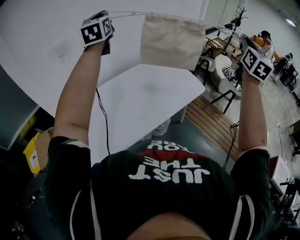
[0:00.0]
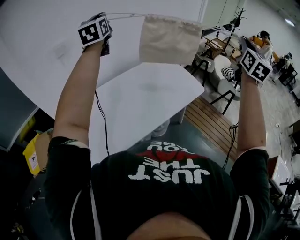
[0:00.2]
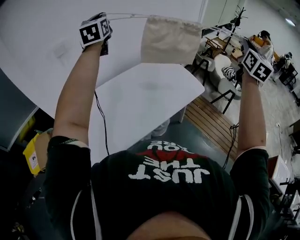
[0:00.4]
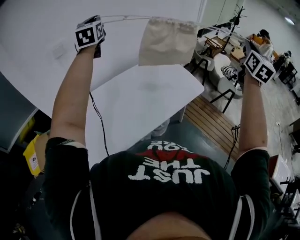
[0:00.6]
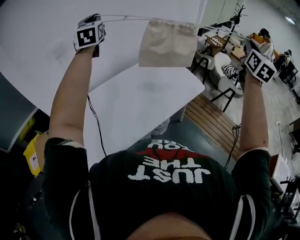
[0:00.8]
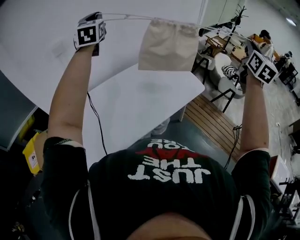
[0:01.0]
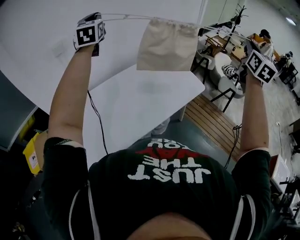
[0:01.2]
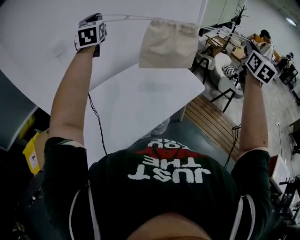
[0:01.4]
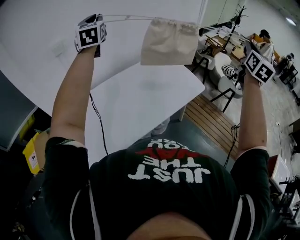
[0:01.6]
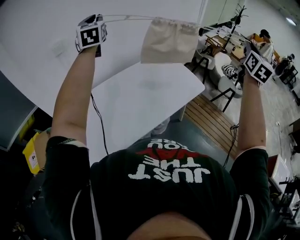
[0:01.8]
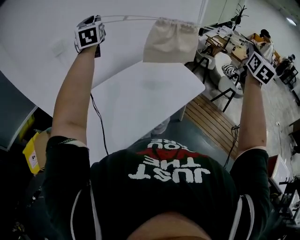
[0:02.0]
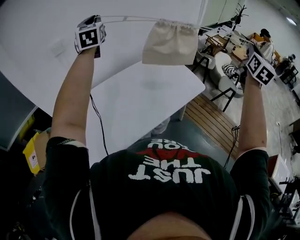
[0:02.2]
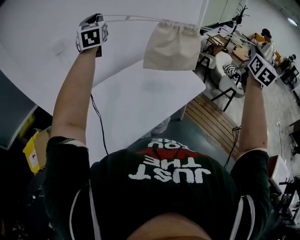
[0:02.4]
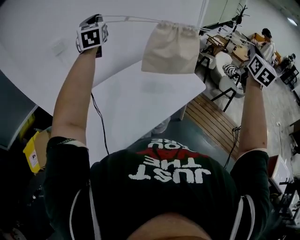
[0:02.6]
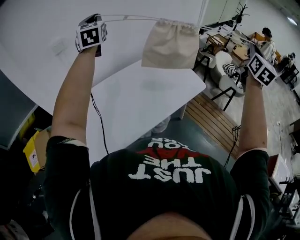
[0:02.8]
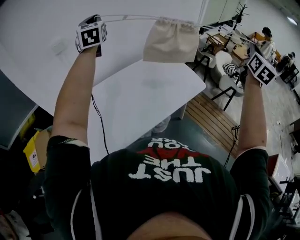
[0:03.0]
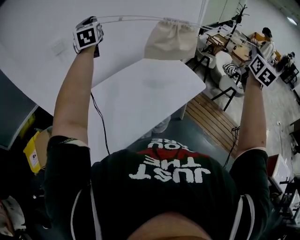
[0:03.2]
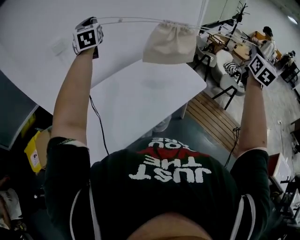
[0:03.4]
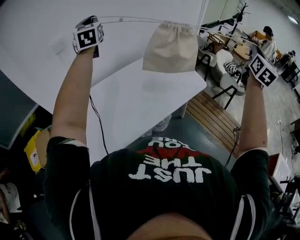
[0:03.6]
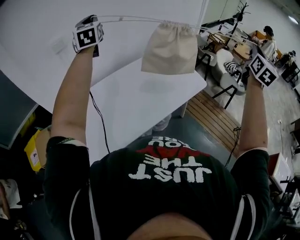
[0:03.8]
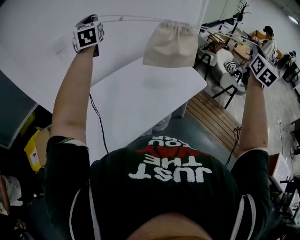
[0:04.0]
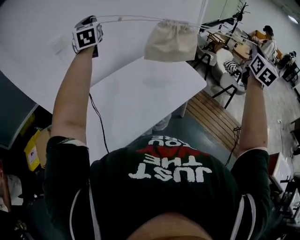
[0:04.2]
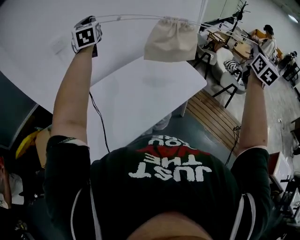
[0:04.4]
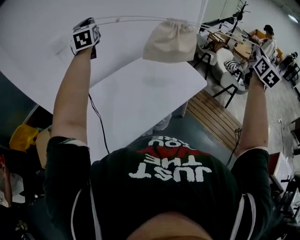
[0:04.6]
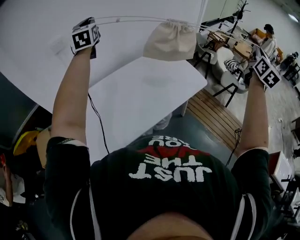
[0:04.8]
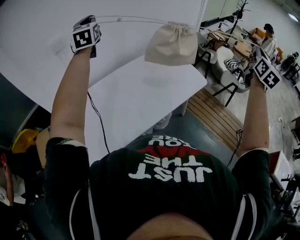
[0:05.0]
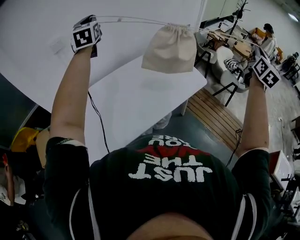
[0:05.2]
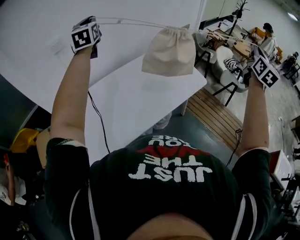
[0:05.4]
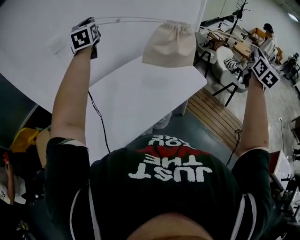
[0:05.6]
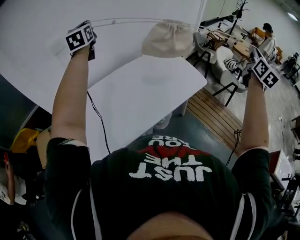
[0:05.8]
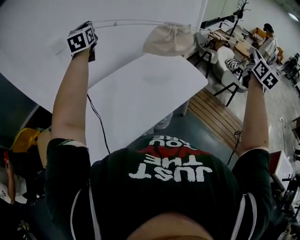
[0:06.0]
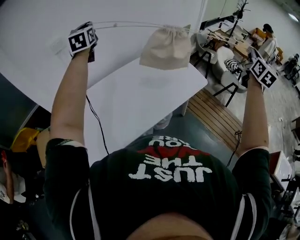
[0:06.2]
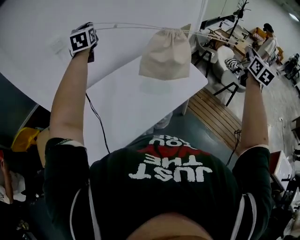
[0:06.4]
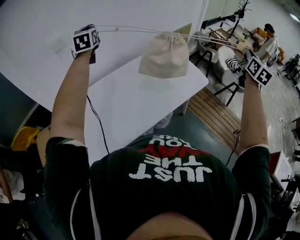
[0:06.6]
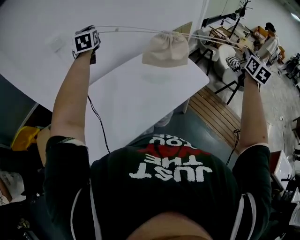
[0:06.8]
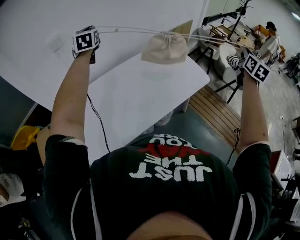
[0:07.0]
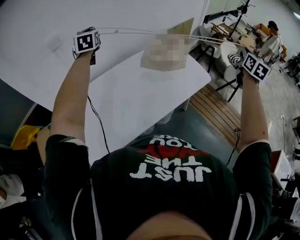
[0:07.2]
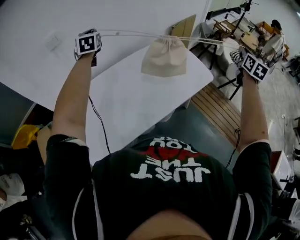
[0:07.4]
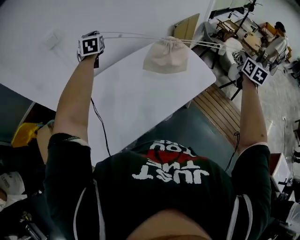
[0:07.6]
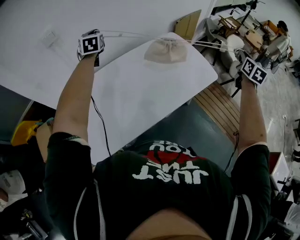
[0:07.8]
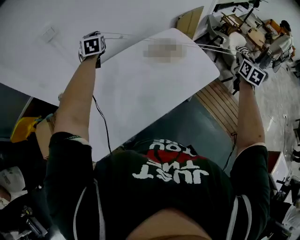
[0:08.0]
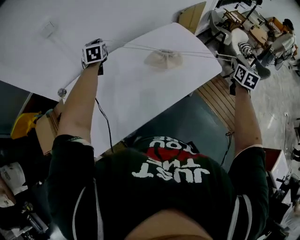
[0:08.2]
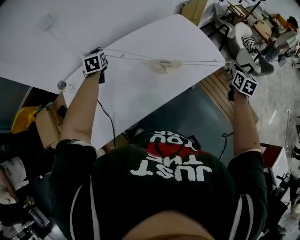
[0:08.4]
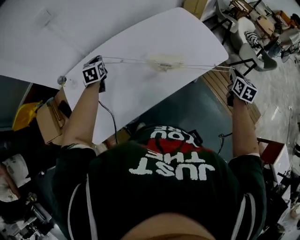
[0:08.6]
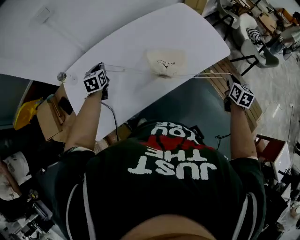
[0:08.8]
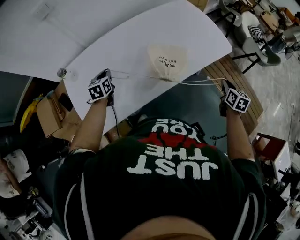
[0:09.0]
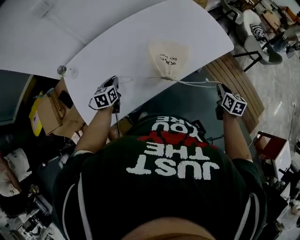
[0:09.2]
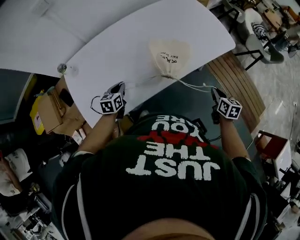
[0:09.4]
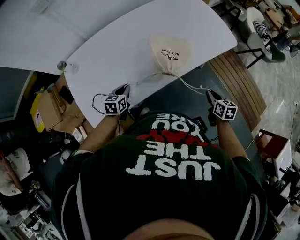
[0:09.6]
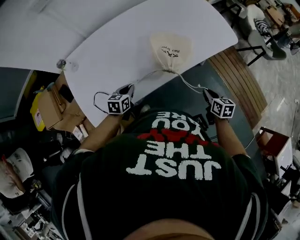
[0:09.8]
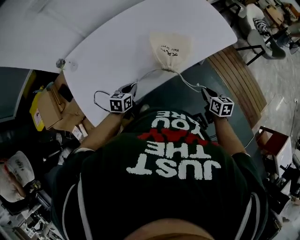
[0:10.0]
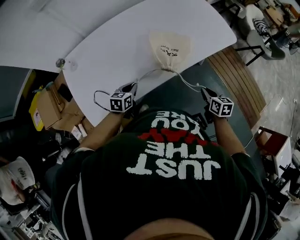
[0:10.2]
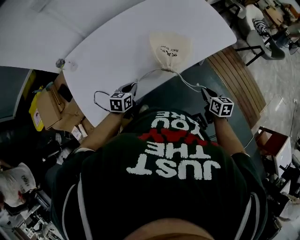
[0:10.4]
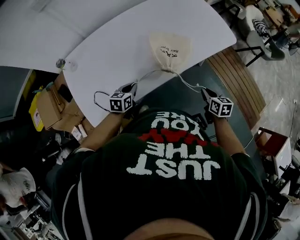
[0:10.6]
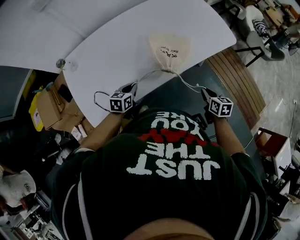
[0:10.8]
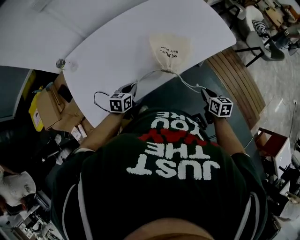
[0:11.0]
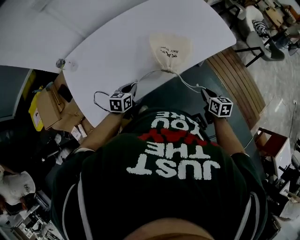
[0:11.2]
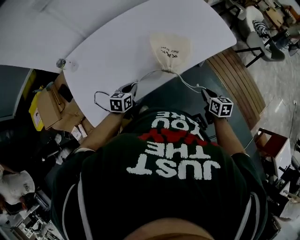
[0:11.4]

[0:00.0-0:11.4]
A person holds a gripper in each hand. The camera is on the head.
0.0 to 1.4 s: The grippers make only small movements.
1.4 to 4.2 s: There are only small adjustments of the grippers.
4.2 to 5.6 s: The grippers move only a little.
5.6 to 7.2 s: The left gripper heads downward, covering approximately 10 cm. The right gripper travels downward and forward by roughly 15 cm.
7.2 to 8.6 s: Both grippers travel together downward, approximately 30 cm. The right gripper changes its angle by some 30 degrees. Meanwhile the left gripper turns by about 30 degrees.
8.6 to 10.0 s: The left gripper moves backward, downward and to the right, approximately 30 cm, and changes its angle by roughly 30 degrees. The right gripper heads downward, backward and to the left, covering about 30 cm, and swivels roughly 30 degrees.
10.0 to 11.4 s: Both grippers stay put.

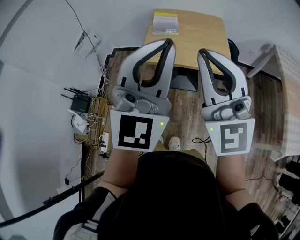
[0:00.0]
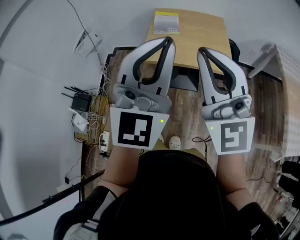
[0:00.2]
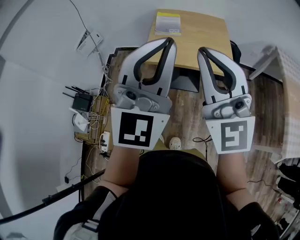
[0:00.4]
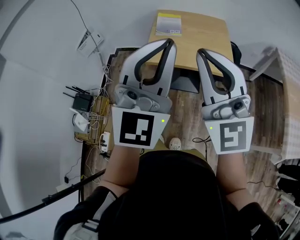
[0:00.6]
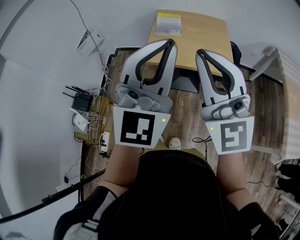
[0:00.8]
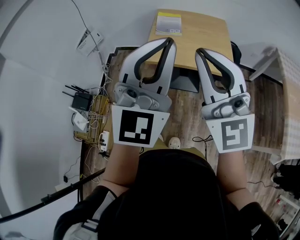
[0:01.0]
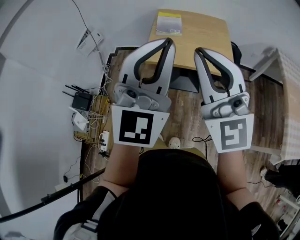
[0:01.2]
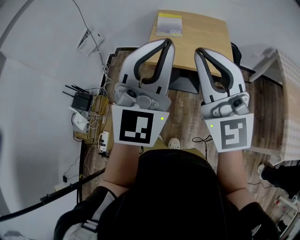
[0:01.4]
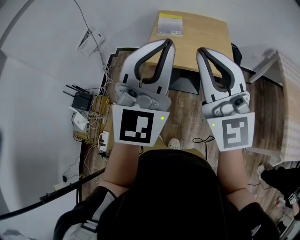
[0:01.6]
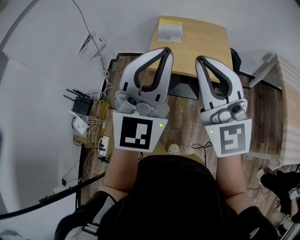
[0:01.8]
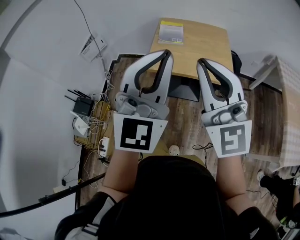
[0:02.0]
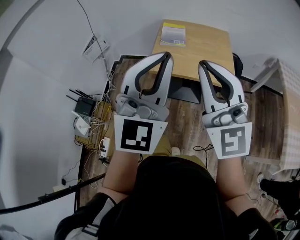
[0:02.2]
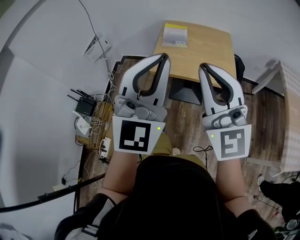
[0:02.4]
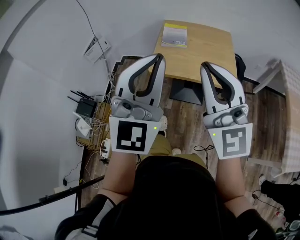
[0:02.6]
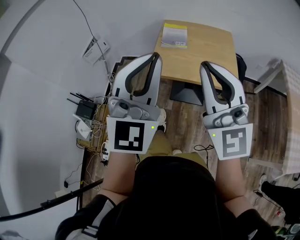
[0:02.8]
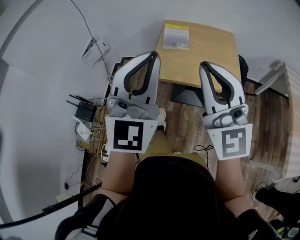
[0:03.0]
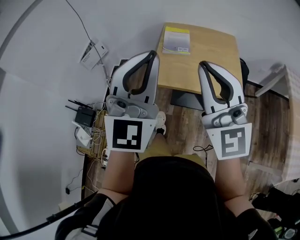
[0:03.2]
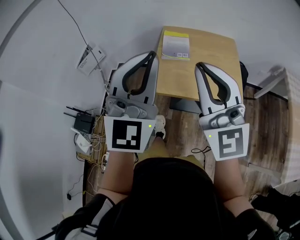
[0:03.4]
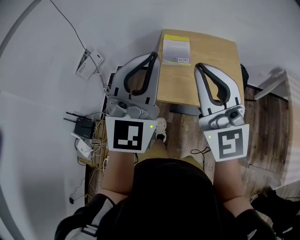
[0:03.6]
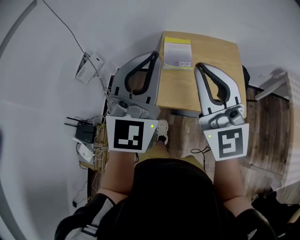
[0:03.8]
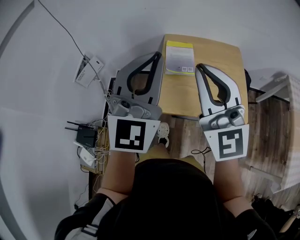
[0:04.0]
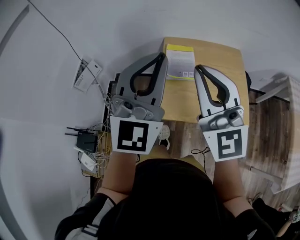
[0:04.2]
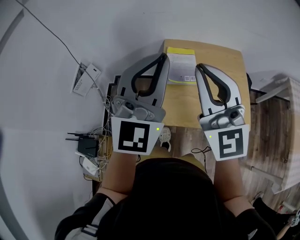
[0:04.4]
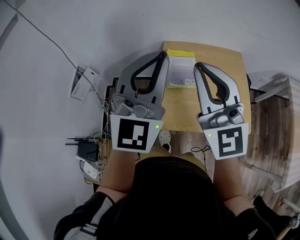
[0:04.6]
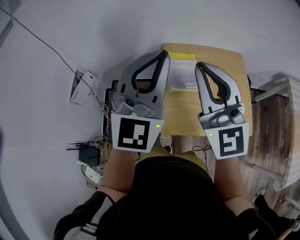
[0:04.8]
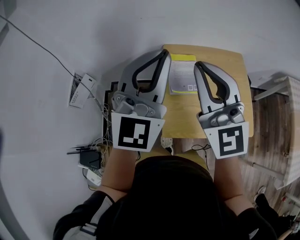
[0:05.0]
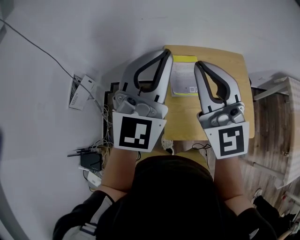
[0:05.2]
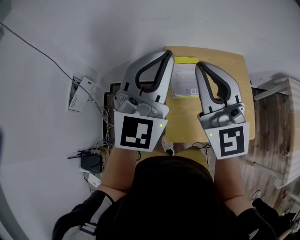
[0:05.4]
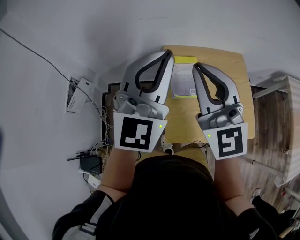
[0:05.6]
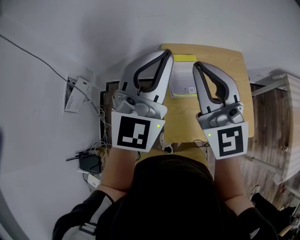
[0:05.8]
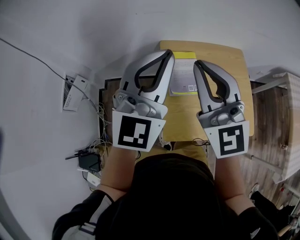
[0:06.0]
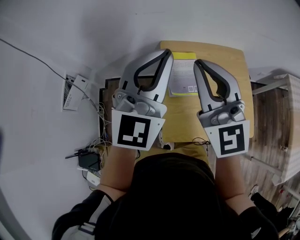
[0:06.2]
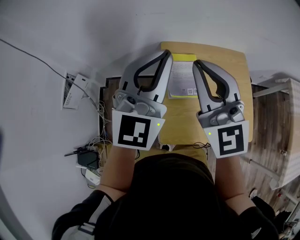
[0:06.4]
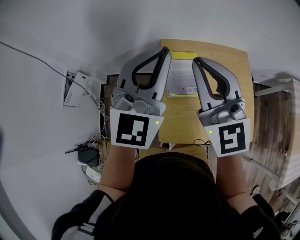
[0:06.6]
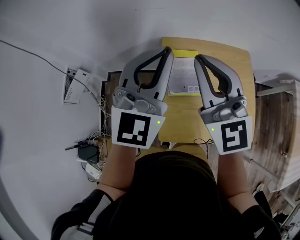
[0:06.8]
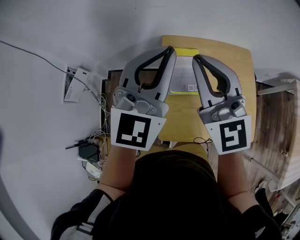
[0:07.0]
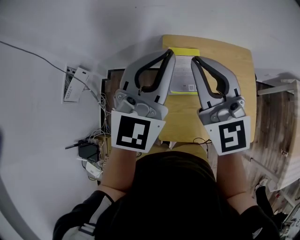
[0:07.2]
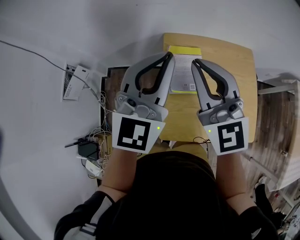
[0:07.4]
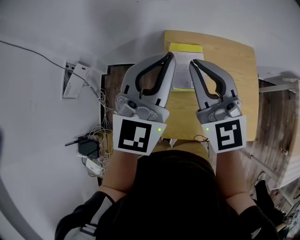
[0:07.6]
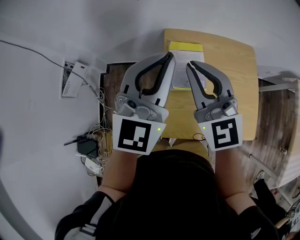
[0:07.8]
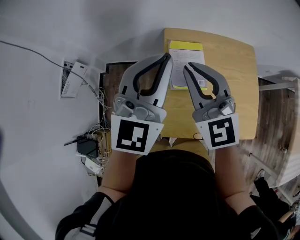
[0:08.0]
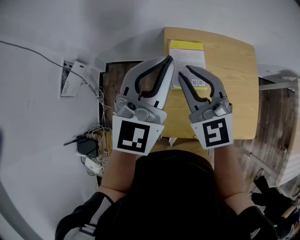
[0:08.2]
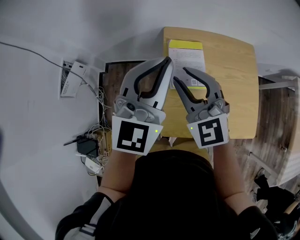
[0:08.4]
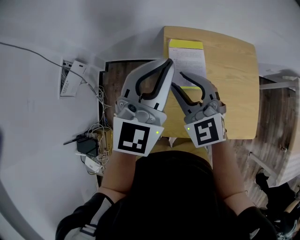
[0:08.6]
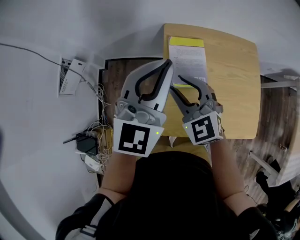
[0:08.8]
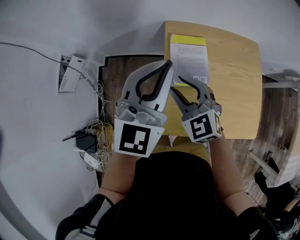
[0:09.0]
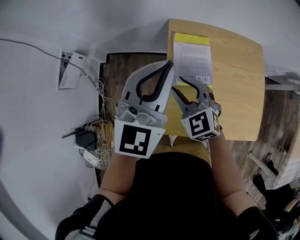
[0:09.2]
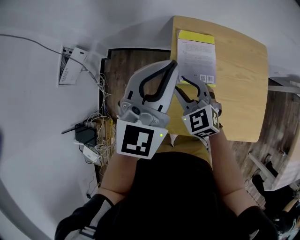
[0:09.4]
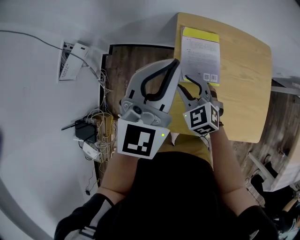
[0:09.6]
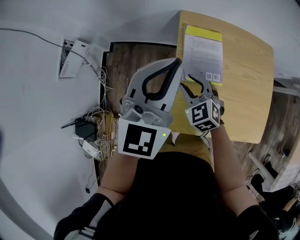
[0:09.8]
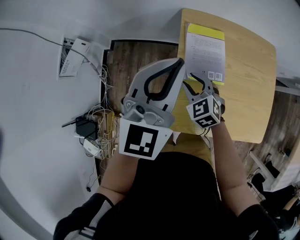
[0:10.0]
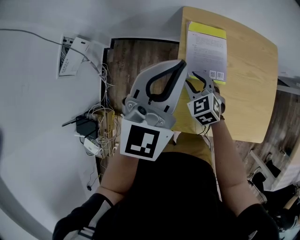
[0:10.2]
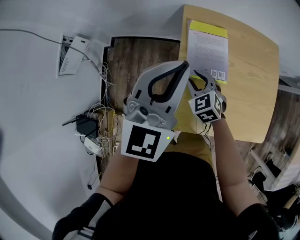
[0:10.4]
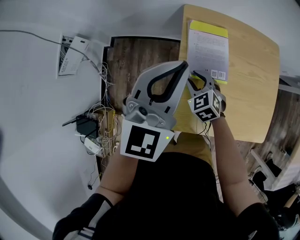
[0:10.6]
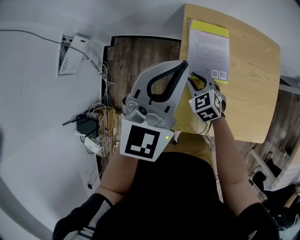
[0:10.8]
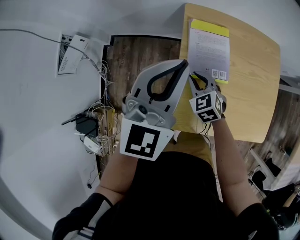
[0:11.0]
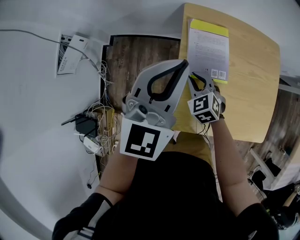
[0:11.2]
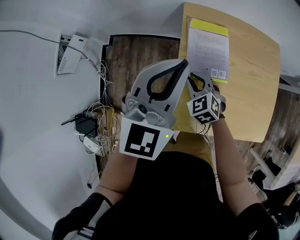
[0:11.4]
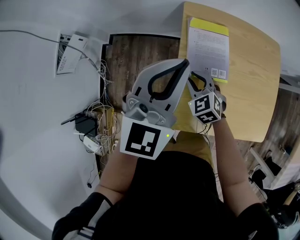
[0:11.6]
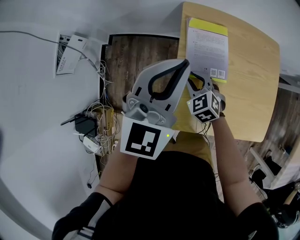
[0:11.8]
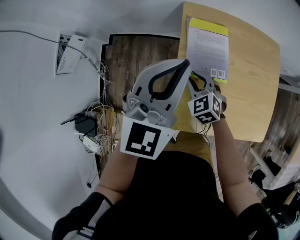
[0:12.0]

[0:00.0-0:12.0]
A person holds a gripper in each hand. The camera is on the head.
0.0 to 1.6 s: The two grippers keep their place.
1.6 to 3.0 s: Both grippers move forward, some 5 cm.
3.0 to 4.4 s: Both grippers travel together forward, about 30 cm.
4.4 to 6.0 s: The left gripper travels forward by approximately 15 cm; the right gripper goes approximately 15 cm forward and to the left.
6.0 to 7.6 s: The right gripper heads downward, covering about 5 cm, while the left gripper changes place by approximately 5 cm.
7.6 to 9.0 s: The left gripper moves downward, about 5 cm. The right gripper goes roughly 15 cm downward, swivels about 30 degrees, and opens up.
9.0 to 10.4 s: The left gripper moves downward, roughly 5 cm, while the right gripper shifts roughly 15 cm downward, and rotates some 20 degrees.
10.4 to 12.0 s: The grippers stay close to where they were, moving slightly.

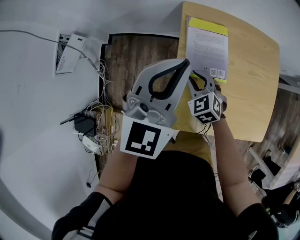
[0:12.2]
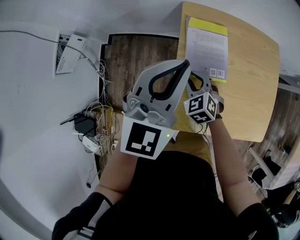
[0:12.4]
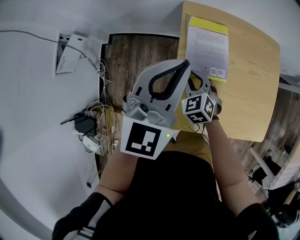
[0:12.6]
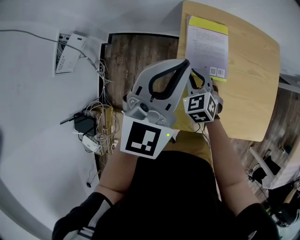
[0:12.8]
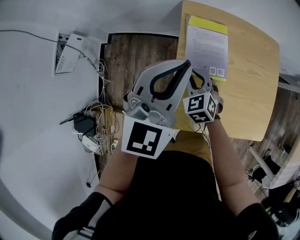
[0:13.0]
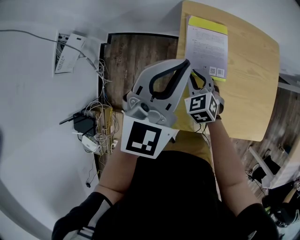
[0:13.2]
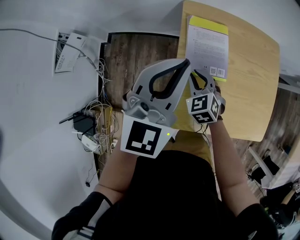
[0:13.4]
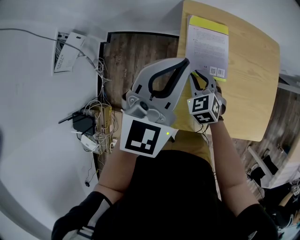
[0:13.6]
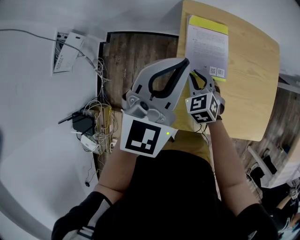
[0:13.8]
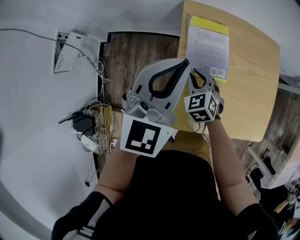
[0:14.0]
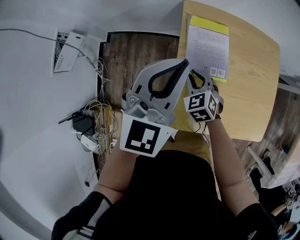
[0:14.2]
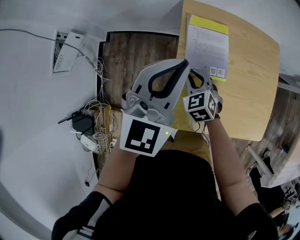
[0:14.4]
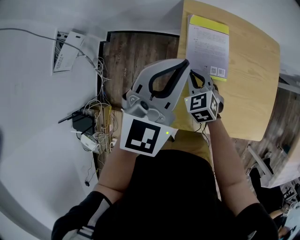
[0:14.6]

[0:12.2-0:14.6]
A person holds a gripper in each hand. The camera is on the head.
12.2 to 13.4 s: There are only small adjustments of the grippers.
13.4 to 14.6 s: The two grippers keep their place.
